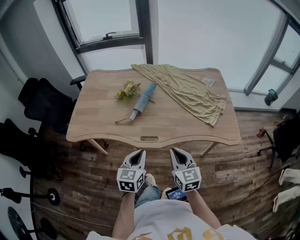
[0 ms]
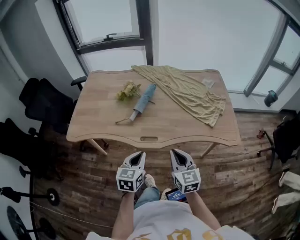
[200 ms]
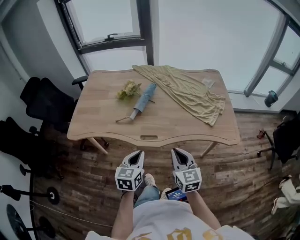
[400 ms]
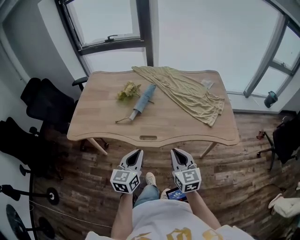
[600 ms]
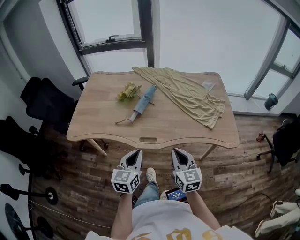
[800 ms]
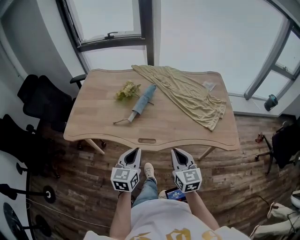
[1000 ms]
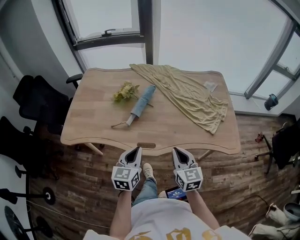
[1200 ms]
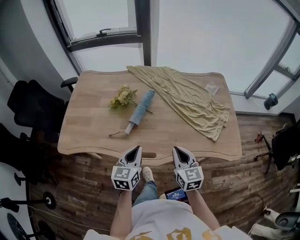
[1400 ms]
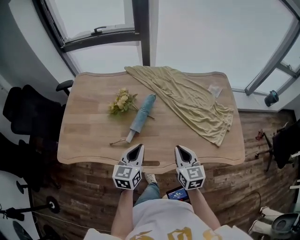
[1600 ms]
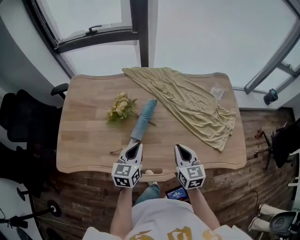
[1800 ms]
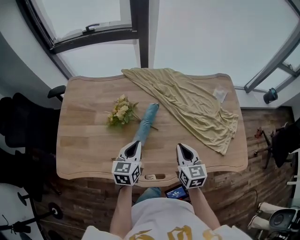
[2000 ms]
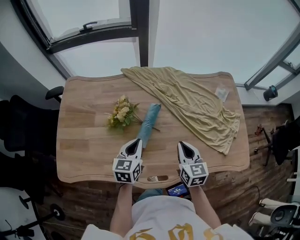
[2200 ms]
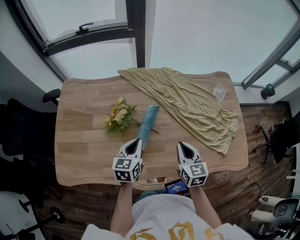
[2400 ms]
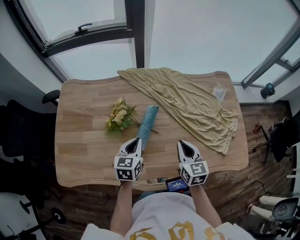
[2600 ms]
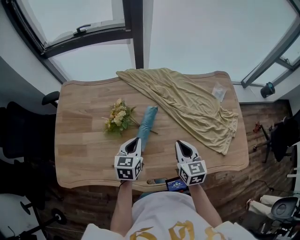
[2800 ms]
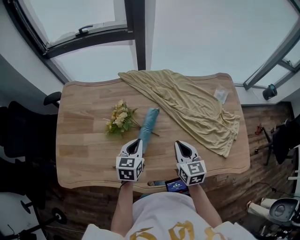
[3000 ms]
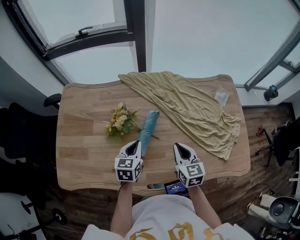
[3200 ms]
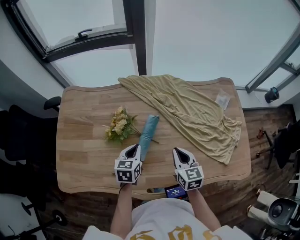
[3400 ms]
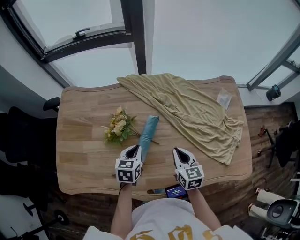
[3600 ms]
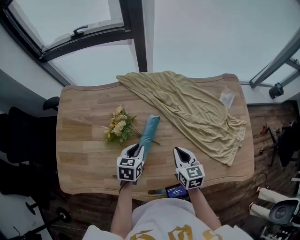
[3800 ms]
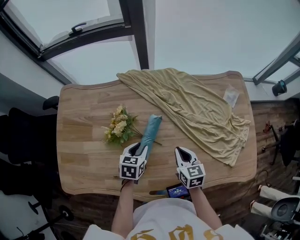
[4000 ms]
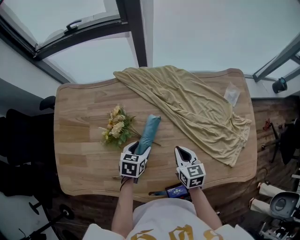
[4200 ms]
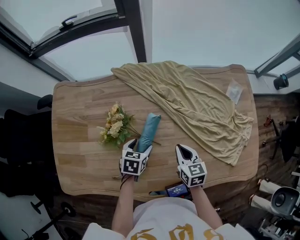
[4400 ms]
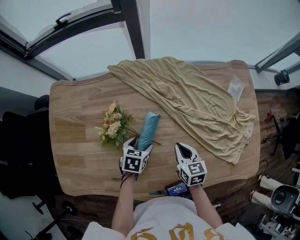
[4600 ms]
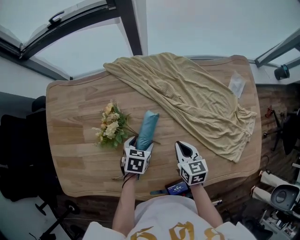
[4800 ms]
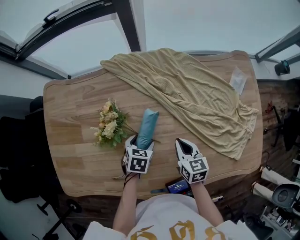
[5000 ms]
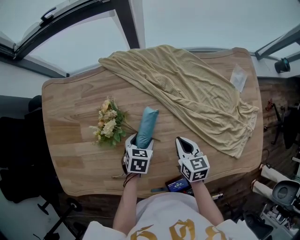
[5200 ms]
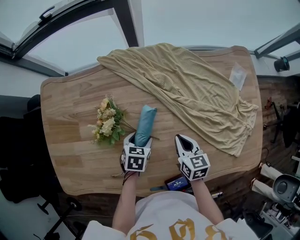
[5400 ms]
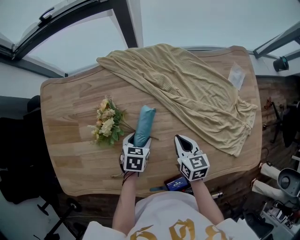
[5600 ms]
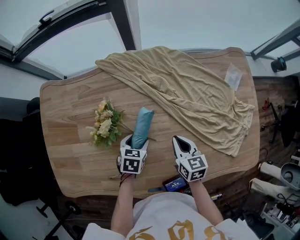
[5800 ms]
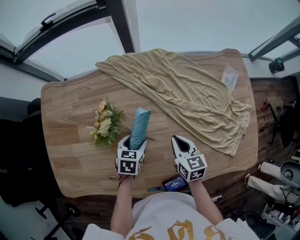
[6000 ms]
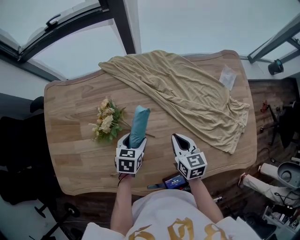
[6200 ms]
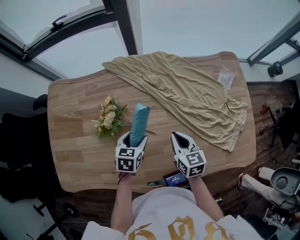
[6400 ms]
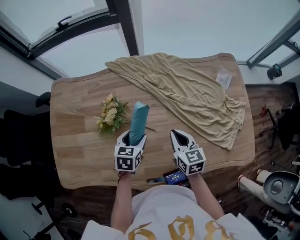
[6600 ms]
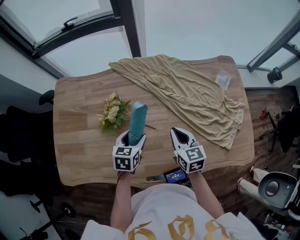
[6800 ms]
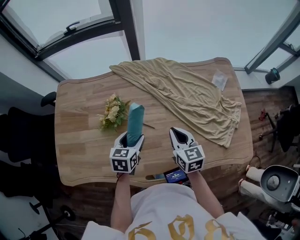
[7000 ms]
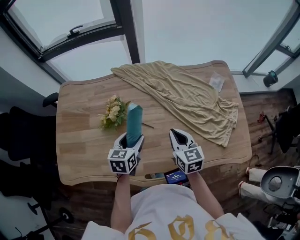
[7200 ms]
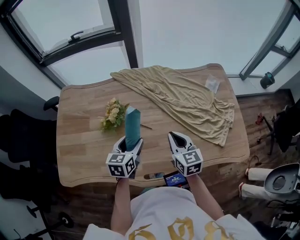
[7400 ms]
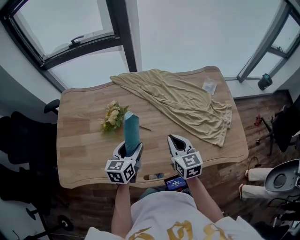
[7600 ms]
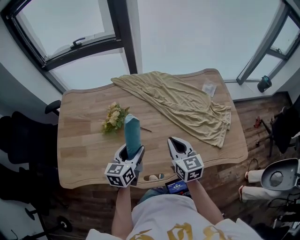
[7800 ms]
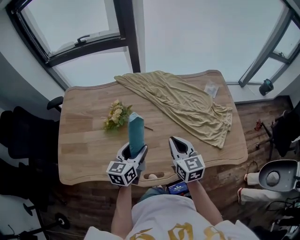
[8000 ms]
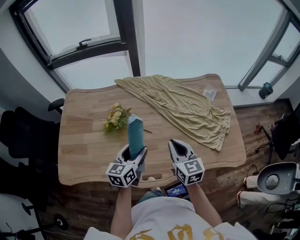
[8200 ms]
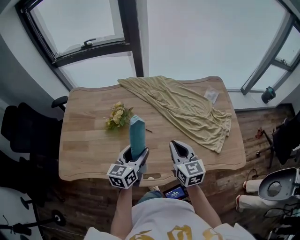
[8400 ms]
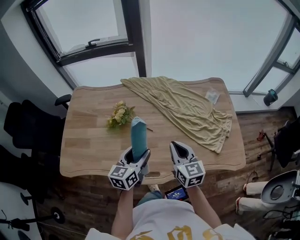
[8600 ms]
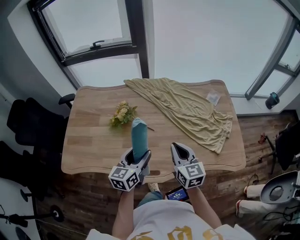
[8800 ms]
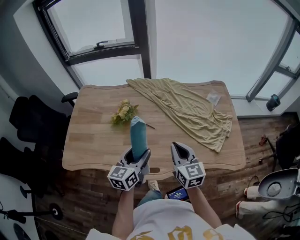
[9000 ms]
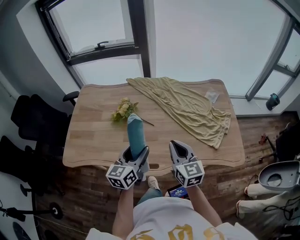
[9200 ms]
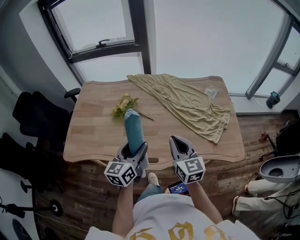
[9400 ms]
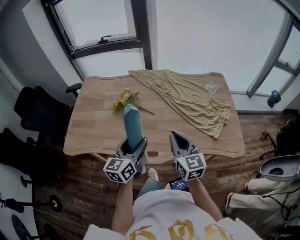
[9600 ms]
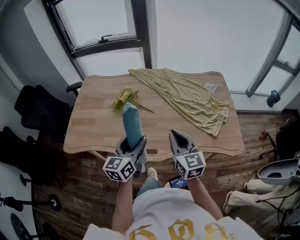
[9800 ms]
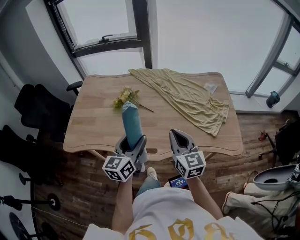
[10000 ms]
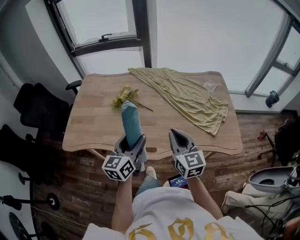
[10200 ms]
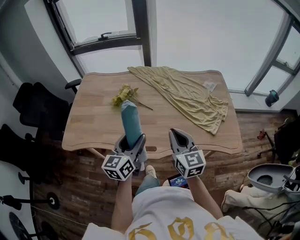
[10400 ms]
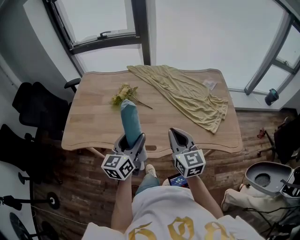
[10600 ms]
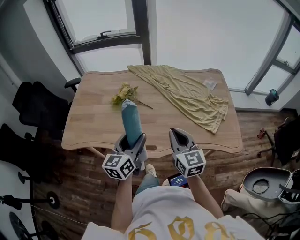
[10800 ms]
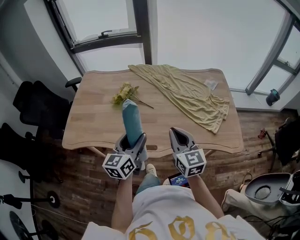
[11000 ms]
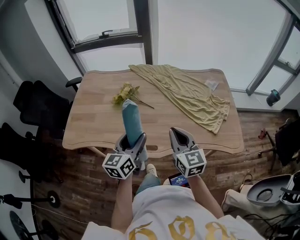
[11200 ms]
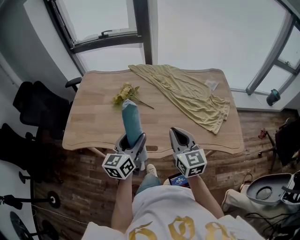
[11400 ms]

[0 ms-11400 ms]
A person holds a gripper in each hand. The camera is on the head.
0 ms to 1400 ms: The grippers both shift forward by about 15 cm.
1400 ms to 2800 ms: The grippers both shift forward by approximately 20 cm.
2800 ms to 4200 ms: The grippers both shift downward and forward by about 10 cm. The left gripper turns by approximately 20 degrees, and opens.
4200 ms to 5600 ms: The left gripper goes about 5 cm downward.
5600 ms to 7200 ms: The two grippers go about 15 cm upward and backward. The left gripper rotates roughly 30 degrees.
7200 ms to 8600 ms: Both grippers travel together backward and upward, some 15 cm.
8600 ms to 10000 ms: The two grippers go some 15 cm backward and upward.
10000 ms to 11400 ms: There are only small adjustments of the grippers.

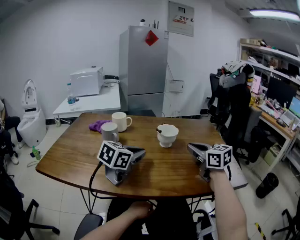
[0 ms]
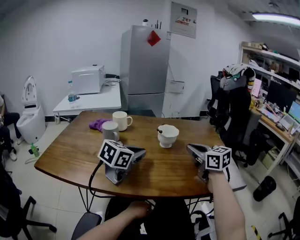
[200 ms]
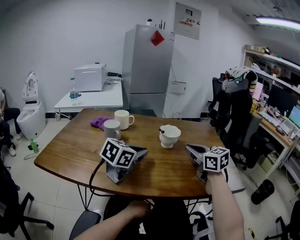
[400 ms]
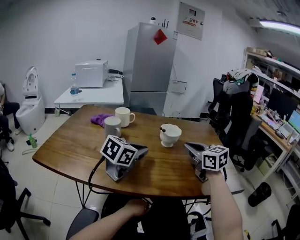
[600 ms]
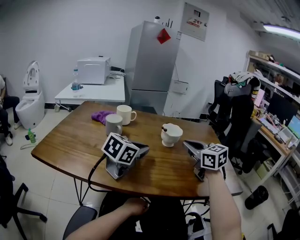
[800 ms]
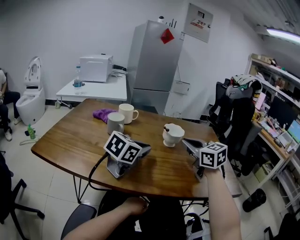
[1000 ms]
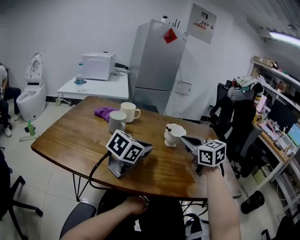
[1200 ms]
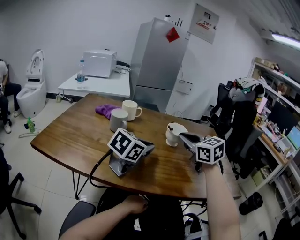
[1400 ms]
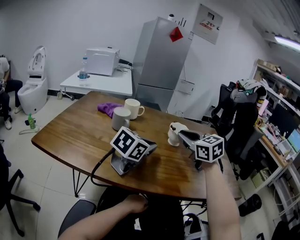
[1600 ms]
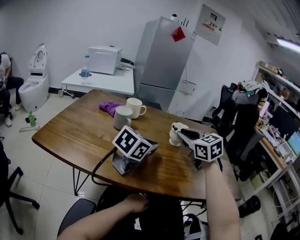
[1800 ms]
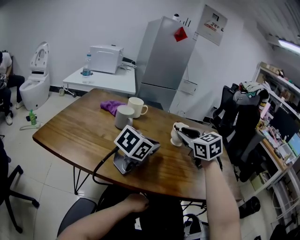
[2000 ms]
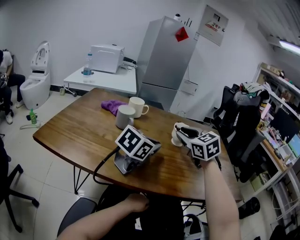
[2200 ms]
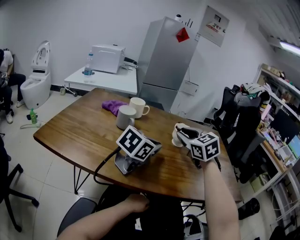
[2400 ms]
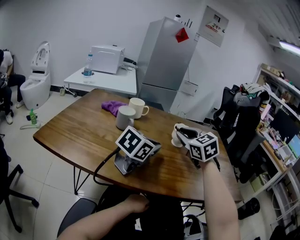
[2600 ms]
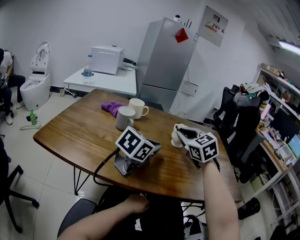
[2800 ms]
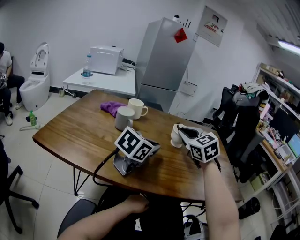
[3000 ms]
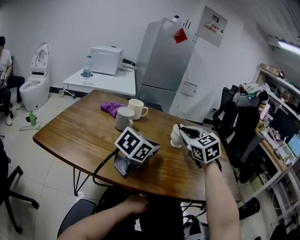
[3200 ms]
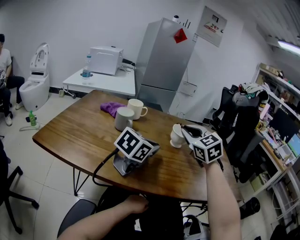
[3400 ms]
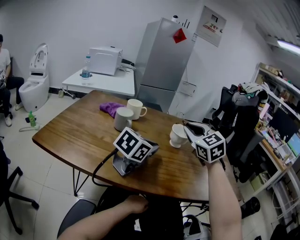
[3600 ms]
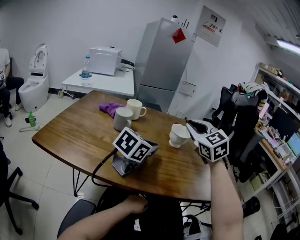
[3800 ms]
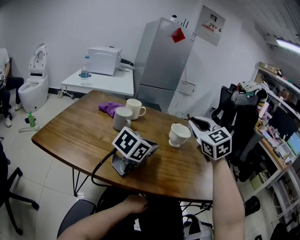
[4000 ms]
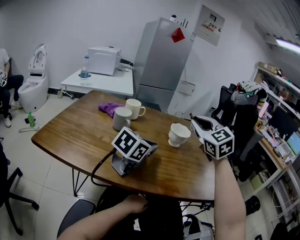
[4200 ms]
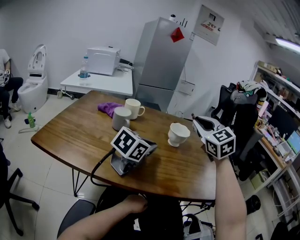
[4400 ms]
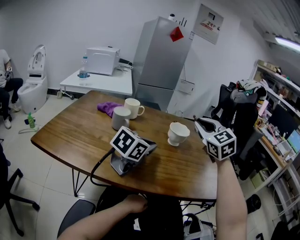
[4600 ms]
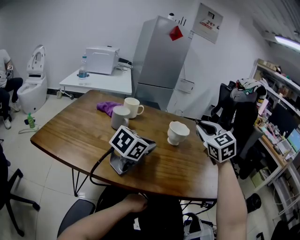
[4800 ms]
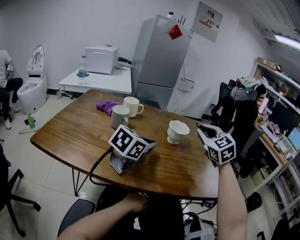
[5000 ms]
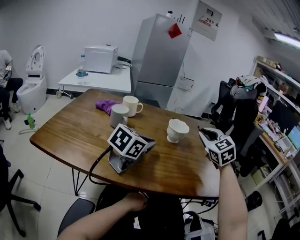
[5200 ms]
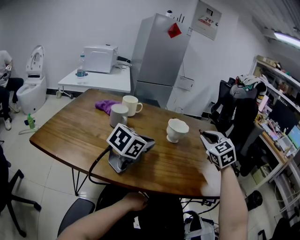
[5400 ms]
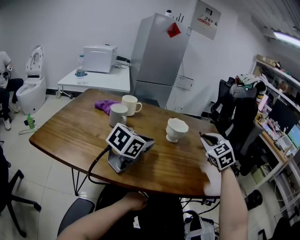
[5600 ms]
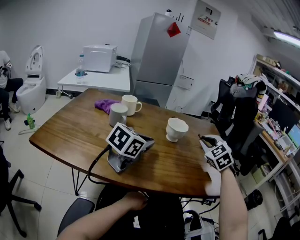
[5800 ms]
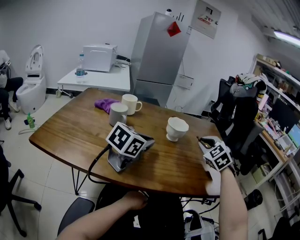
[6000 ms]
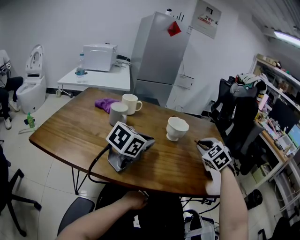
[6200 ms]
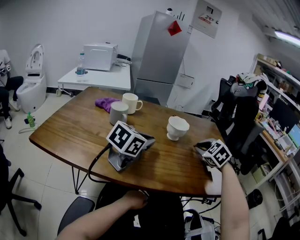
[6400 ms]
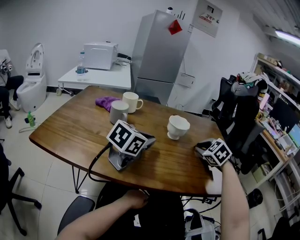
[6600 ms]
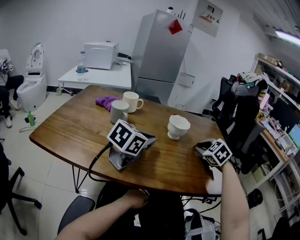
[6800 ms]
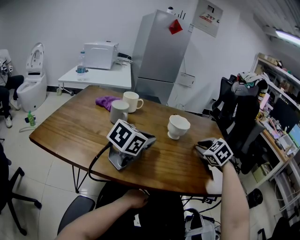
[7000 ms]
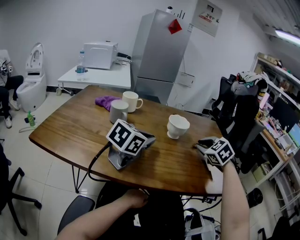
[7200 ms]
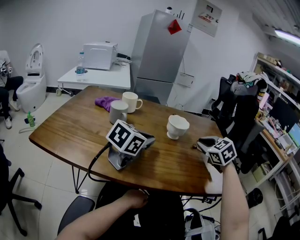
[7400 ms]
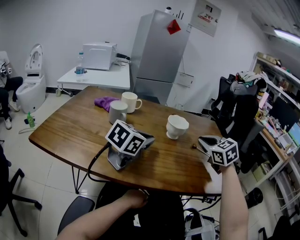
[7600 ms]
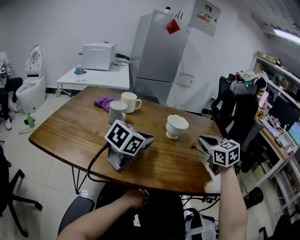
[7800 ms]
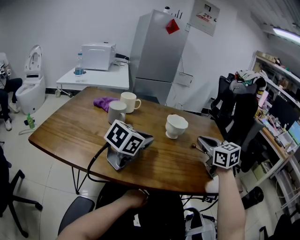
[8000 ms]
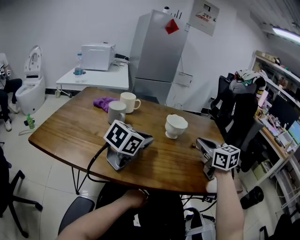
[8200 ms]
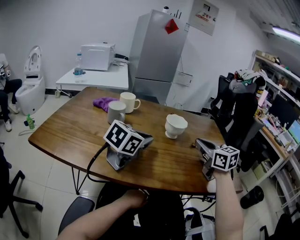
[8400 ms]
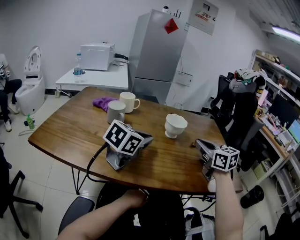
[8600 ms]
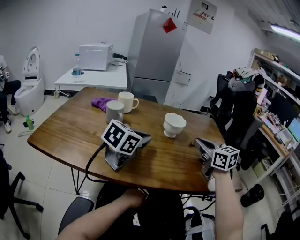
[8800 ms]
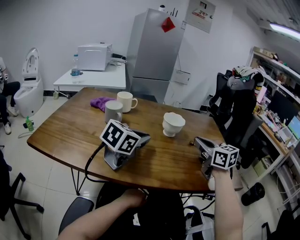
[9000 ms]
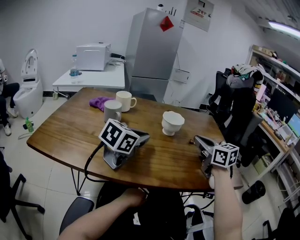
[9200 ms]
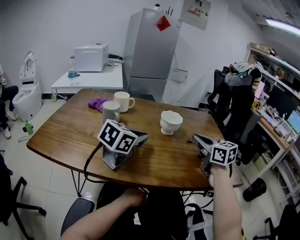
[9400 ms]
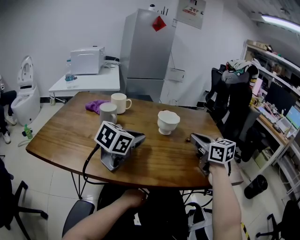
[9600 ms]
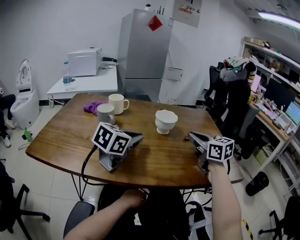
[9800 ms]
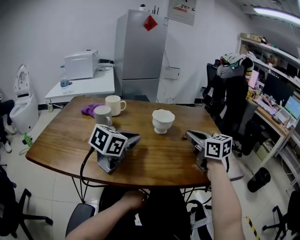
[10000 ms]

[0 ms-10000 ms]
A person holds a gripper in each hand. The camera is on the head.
0 ms to 1400 ms: The right gripper goes roughly 10 cm to the left.
1400 ms to 2800 ms: The grippers stay close to where they were, moving slightly.
2800 ms to 4200 ms: The right gripper travels upward by some 10 cm.
4200 ms to 5800 ms: The right gripper heads downward and to the right, covering some 15 cm, and turns by some 20 degrees.
5800 ms to 7200 ms: The grippers stay close to where they were, moving slightly.
7200 ms to 8600 ms: The right gripper moves approximately 5 cm, and rotates about 40 degrees.
8600 ms to 10000 ms: The two grippers keep their place.

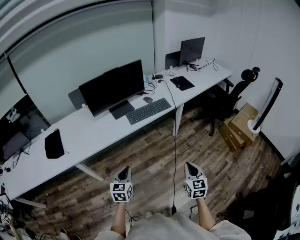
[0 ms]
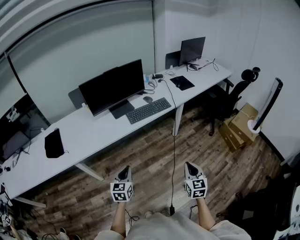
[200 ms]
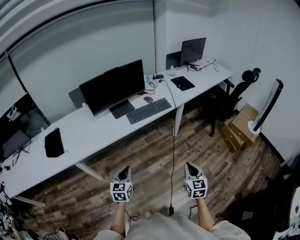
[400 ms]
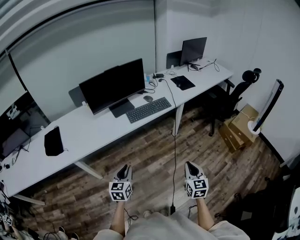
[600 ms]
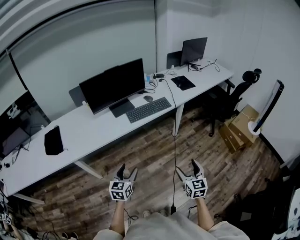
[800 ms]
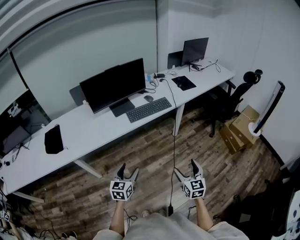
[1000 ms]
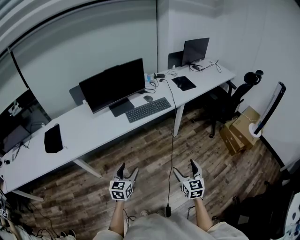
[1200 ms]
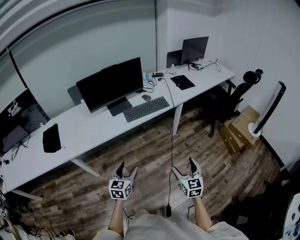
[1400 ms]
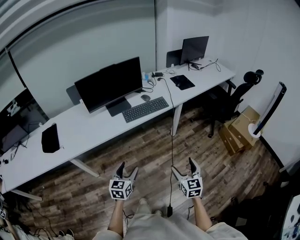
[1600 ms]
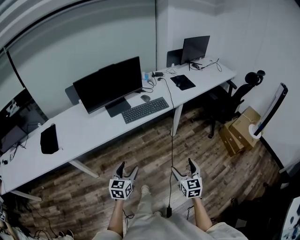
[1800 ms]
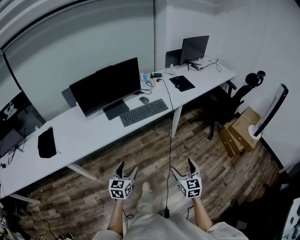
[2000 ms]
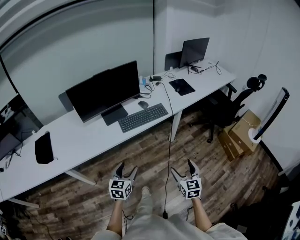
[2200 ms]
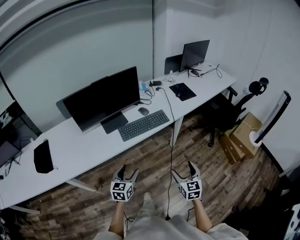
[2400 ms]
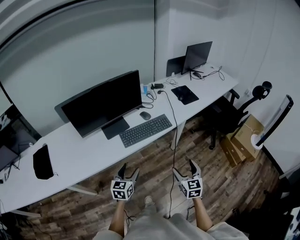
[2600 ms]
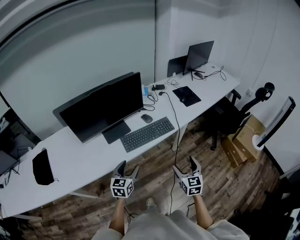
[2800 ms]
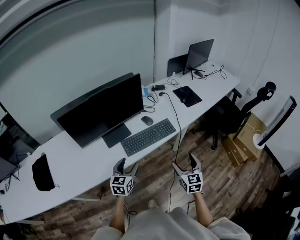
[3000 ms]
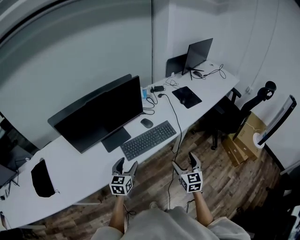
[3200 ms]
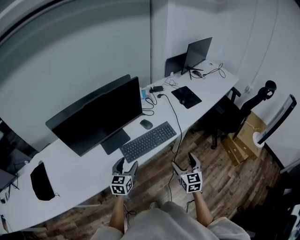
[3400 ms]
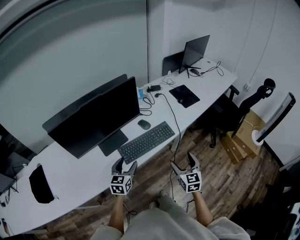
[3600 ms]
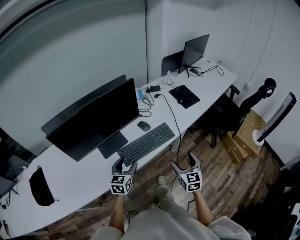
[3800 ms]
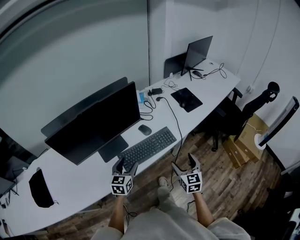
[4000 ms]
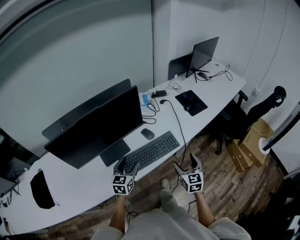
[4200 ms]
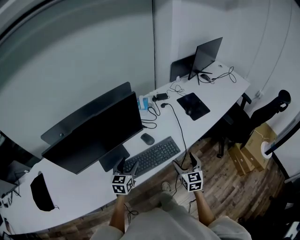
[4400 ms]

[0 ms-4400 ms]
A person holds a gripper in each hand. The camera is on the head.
0 ms to 1400 ms: The left gripper goes roughly 5 cm to the right, and opens. Meanwhile the right gripper opens its fingers.
1400 ms to 3000 ms: The grippers both shift forward by some 35 cm.
3000 ms to 4400 ms: Both grippers move forward, roughly 20 cm.
